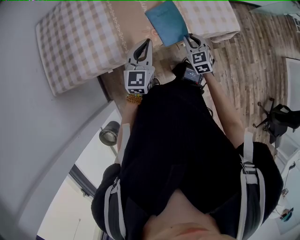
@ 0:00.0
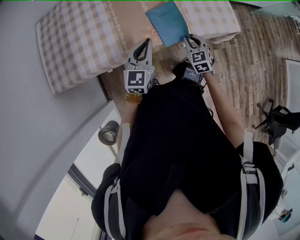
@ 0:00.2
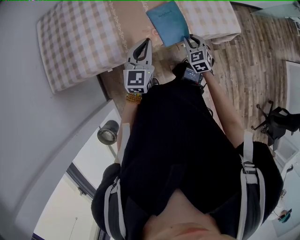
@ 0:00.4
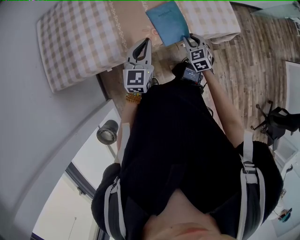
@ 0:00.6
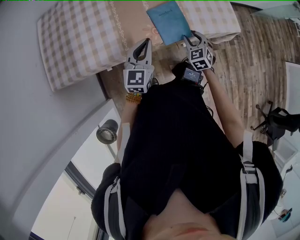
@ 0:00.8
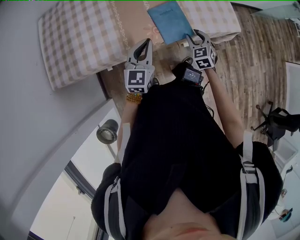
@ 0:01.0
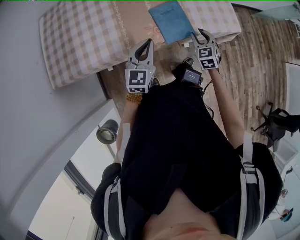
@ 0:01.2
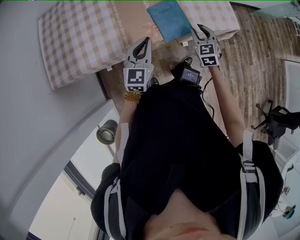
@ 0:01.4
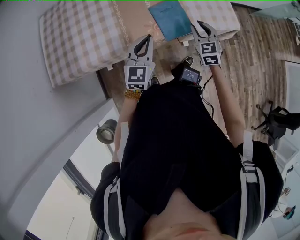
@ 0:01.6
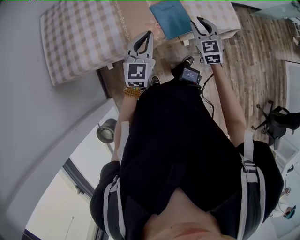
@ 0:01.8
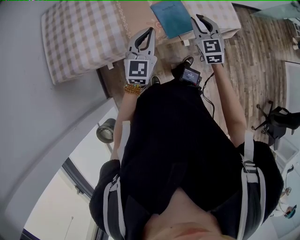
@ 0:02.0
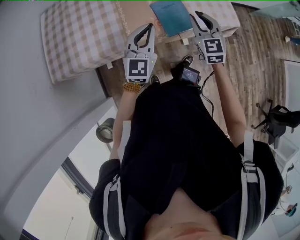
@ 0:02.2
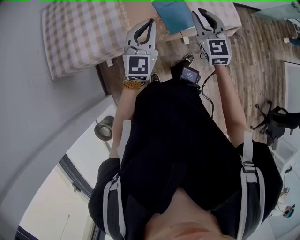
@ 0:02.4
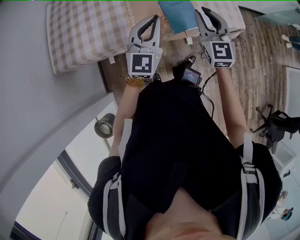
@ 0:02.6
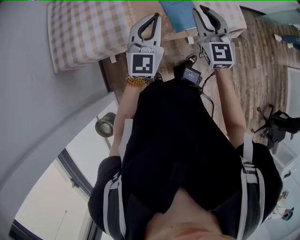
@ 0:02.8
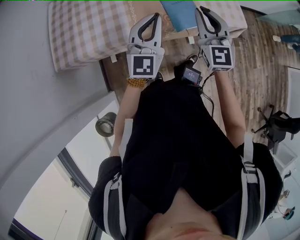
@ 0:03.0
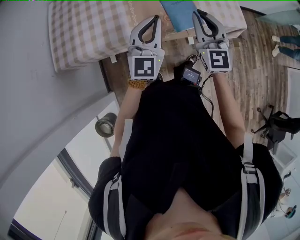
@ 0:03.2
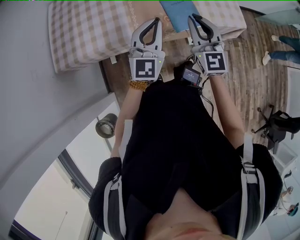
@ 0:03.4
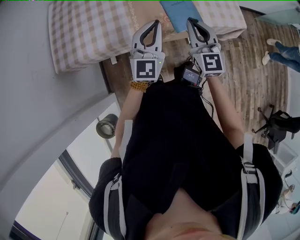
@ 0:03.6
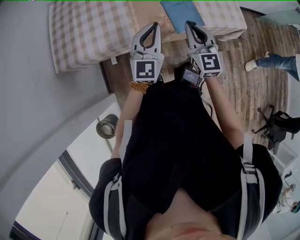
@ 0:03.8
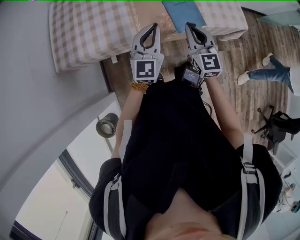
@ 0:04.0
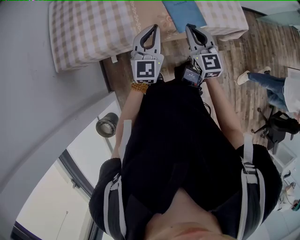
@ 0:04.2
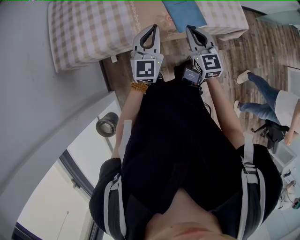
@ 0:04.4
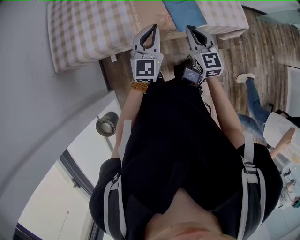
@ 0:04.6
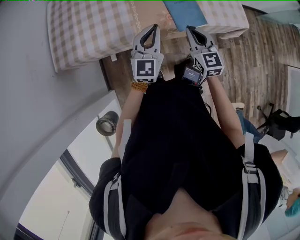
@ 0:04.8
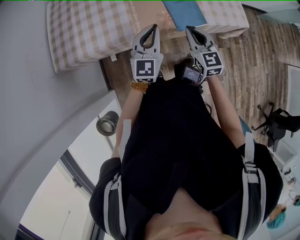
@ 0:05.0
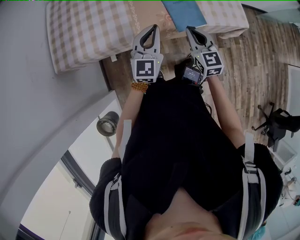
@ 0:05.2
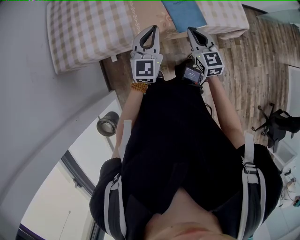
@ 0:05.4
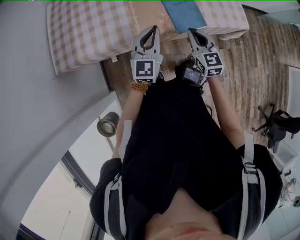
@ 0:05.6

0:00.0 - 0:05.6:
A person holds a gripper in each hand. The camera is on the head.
0:00.0 - 0:01.4: The grippers move only a little.
0:01.4 - 0:02.8: The right gripper is displaced upward and to the left by approximately 20 cm, and rotates about 30 degrees. Meanwhile the left gripper goes approximately 10 cm upward.
0:02.8 - 0:04.2: The two grippers go approximately 10 cm downward.
0:04.2 - 0:05.6: The right gripper shifts about 5 cm downward.

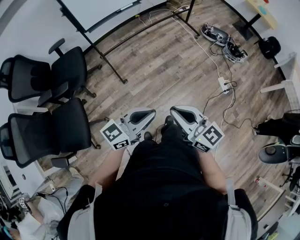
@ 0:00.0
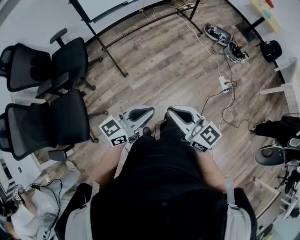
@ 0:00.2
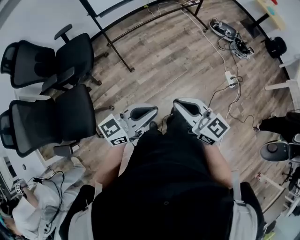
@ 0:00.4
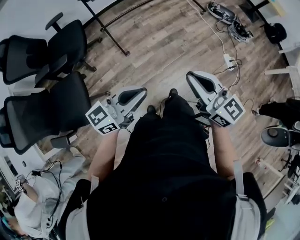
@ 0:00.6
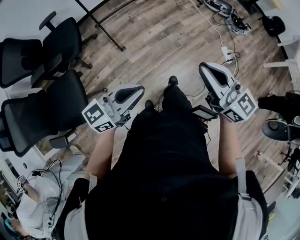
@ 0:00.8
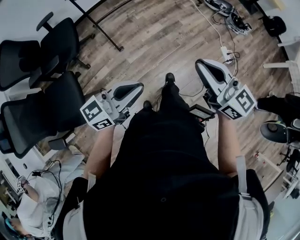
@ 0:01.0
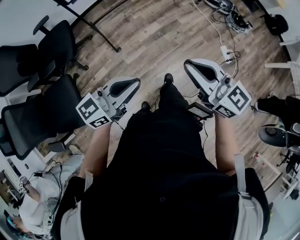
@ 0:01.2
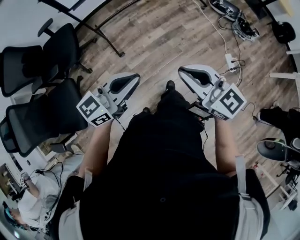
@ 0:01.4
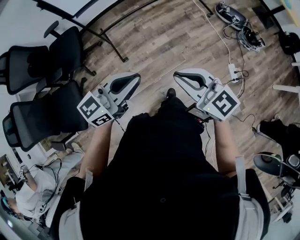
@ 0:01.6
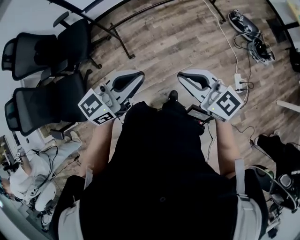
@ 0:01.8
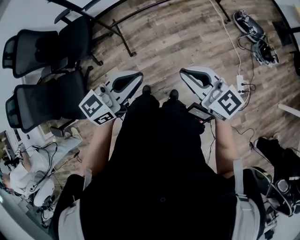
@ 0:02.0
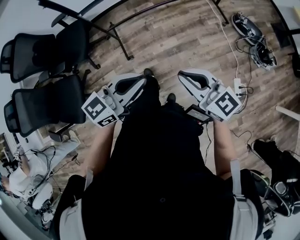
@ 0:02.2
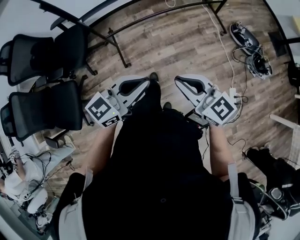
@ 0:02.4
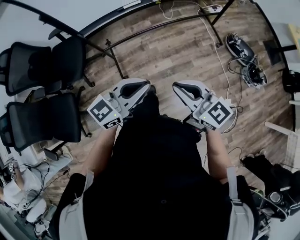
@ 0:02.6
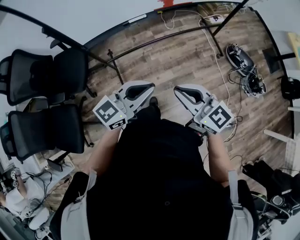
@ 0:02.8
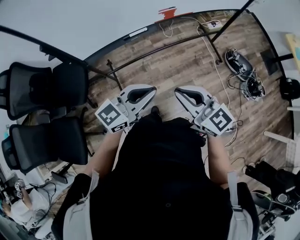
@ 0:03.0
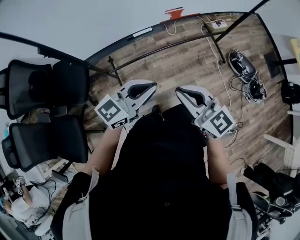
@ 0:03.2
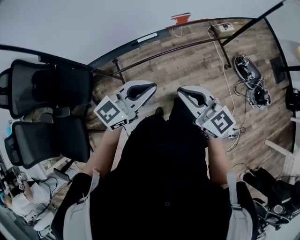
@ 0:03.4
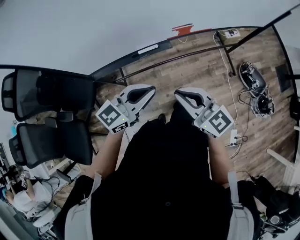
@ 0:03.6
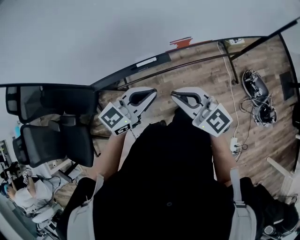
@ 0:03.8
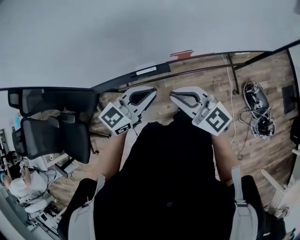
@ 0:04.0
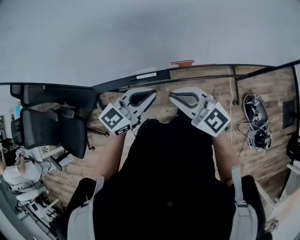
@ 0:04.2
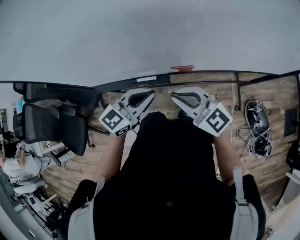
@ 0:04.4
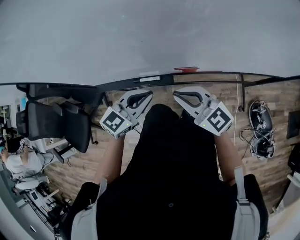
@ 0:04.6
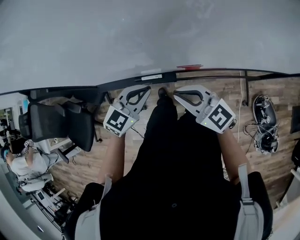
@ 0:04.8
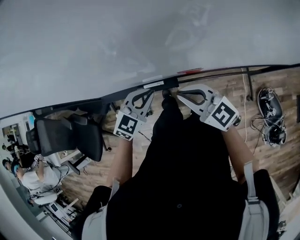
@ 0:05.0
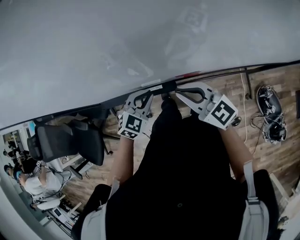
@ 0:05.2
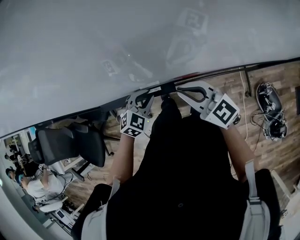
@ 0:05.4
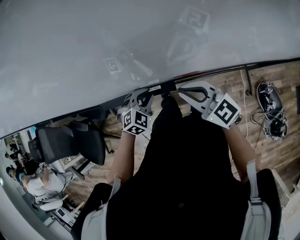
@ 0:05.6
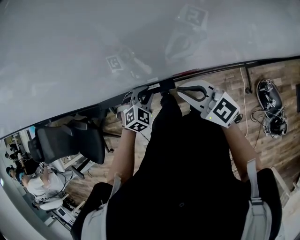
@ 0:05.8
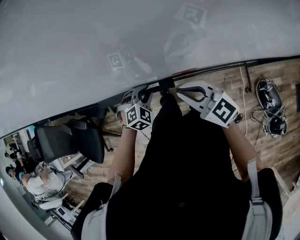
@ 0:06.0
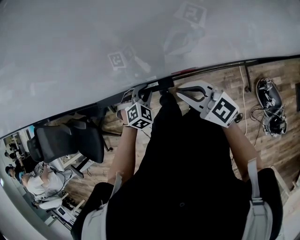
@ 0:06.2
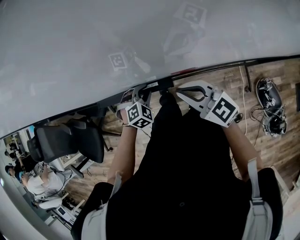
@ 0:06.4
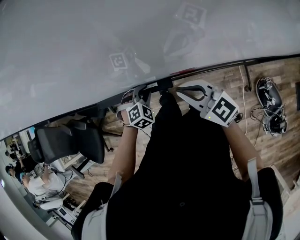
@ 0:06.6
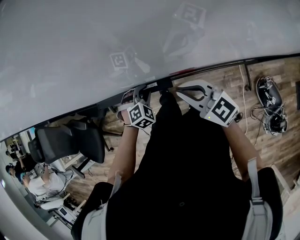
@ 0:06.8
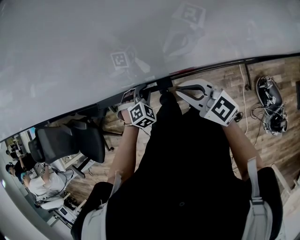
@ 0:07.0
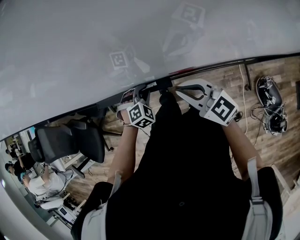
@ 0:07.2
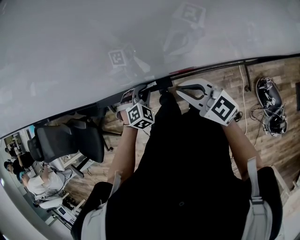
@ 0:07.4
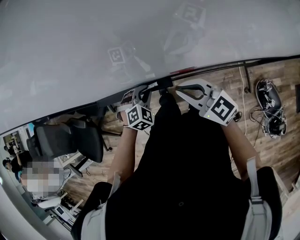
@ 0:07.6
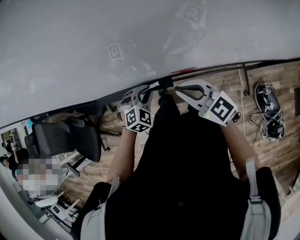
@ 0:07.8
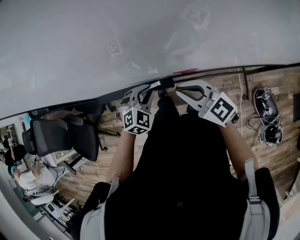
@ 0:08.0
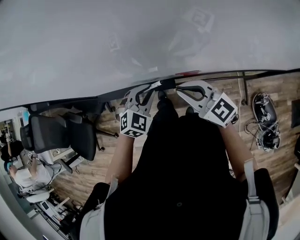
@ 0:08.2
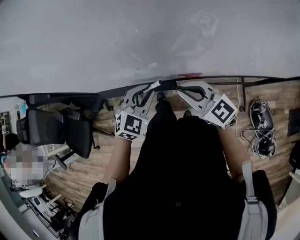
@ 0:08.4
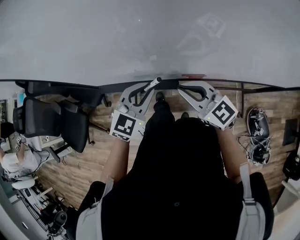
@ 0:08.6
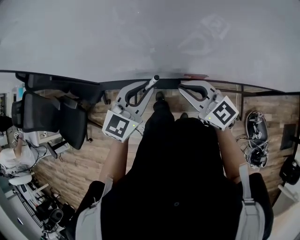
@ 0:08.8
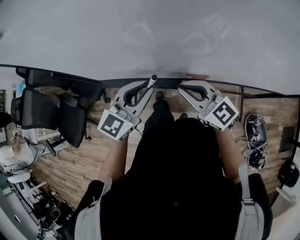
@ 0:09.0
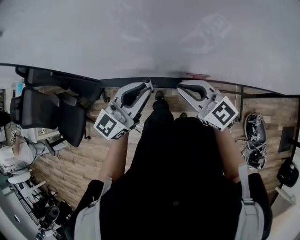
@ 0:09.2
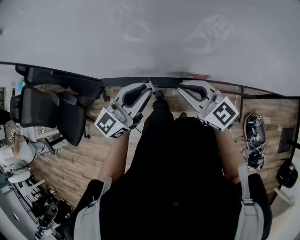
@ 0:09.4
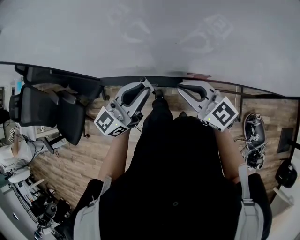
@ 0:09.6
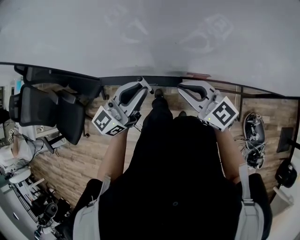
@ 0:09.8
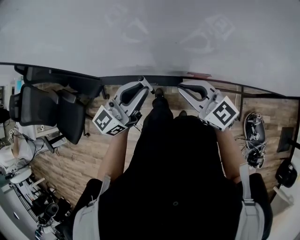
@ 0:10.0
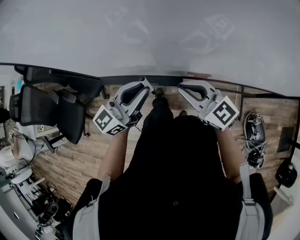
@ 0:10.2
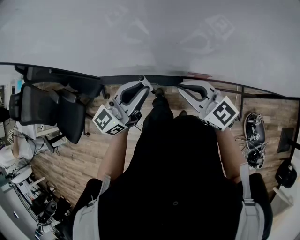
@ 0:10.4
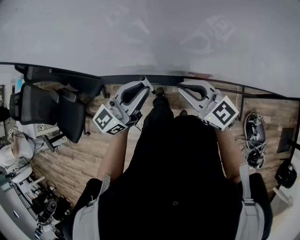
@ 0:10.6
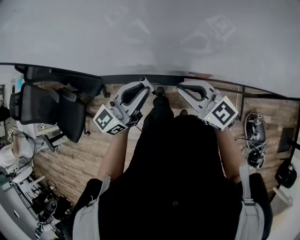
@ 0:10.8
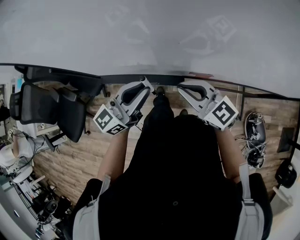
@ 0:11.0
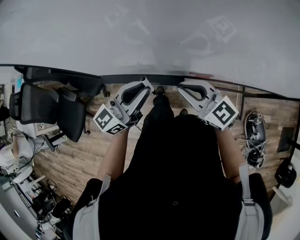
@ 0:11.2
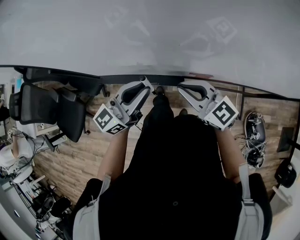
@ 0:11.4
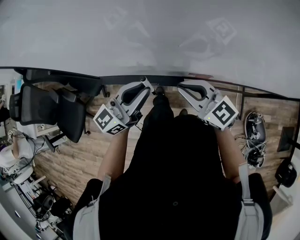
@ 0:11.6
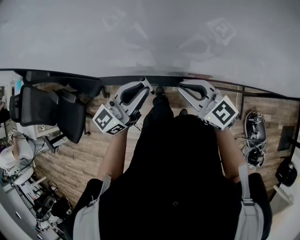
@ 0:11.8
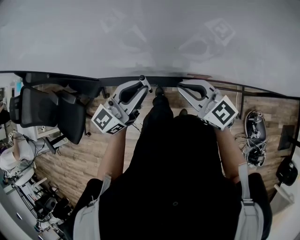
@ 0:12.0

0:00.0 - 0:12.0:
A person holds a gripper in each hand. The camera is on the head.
0:00.0 - 0:01.6: Both grippers travel together forward, approximately 20 cm.
0:01.6 - 0:03.0: The two grippers go approximately 30 cm forward.
0:03.0 - 0:04.4: The left gripper changes place by some 30 cm, and turns by about 30 degrees; the right gripper moves approximately 30 cm, and swivels approximately 30 degrees.
0:04.4 - 0:06.0: The left gripper moves downward and forward, roughly 20 cm, tilts its fingers roughly 40 degrees downward, and opens. Meanwhile the right gripper travels forward by some 5 cm.
0:06.0 - 0:07.6: The grippers move only a little.
0:07.6 - 0:09.0: The left gripper heads upward, covering about 25 cm, and tilts its fingers about 50 degrees upward. Meanwhile the right gripper shifts some 5 cm upward.
0:09.0 - 0:10.4: The left gripper turns by roughly 20 degrees.
0:10.4 - 0:12.0: There are only small adjustments of the grippers.

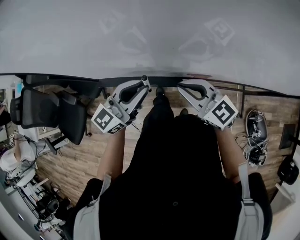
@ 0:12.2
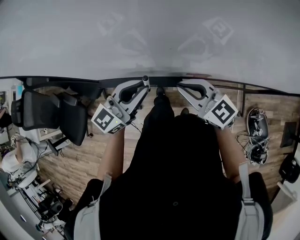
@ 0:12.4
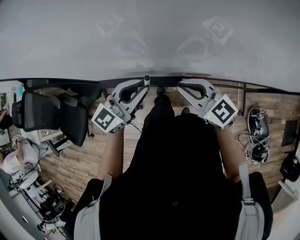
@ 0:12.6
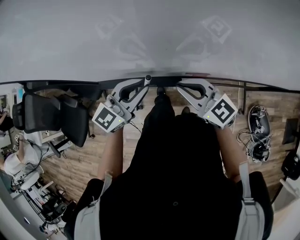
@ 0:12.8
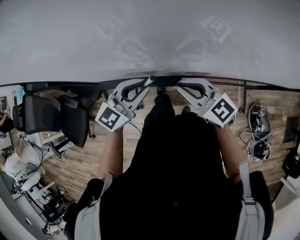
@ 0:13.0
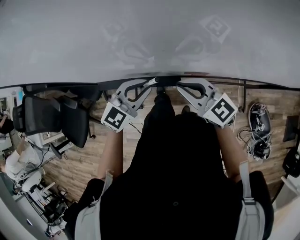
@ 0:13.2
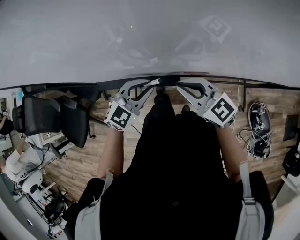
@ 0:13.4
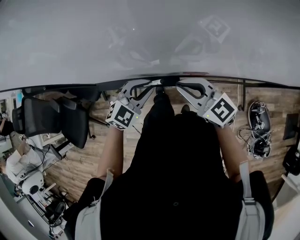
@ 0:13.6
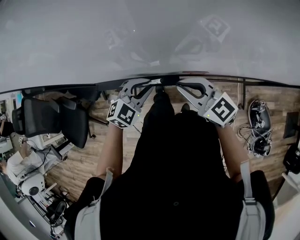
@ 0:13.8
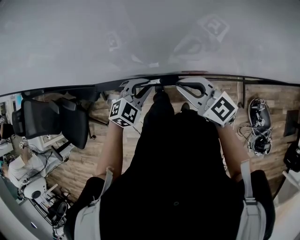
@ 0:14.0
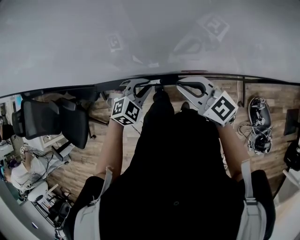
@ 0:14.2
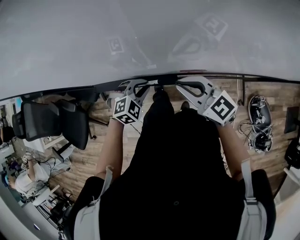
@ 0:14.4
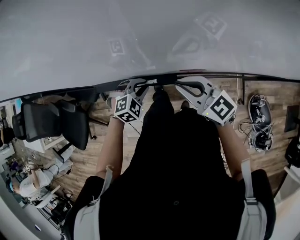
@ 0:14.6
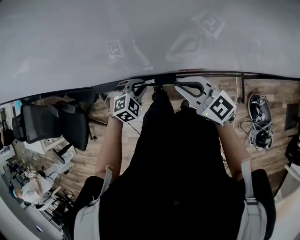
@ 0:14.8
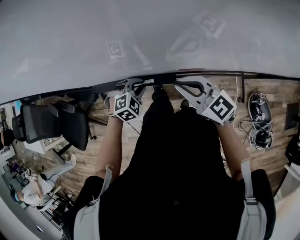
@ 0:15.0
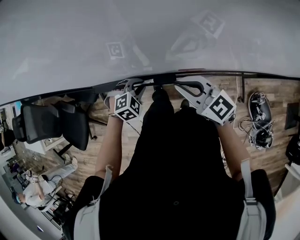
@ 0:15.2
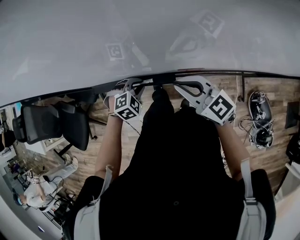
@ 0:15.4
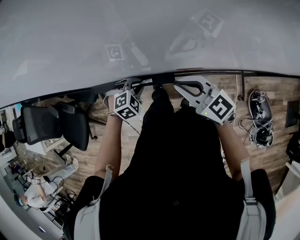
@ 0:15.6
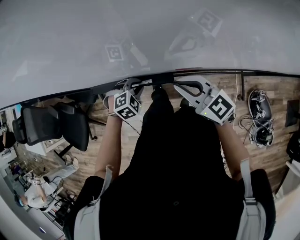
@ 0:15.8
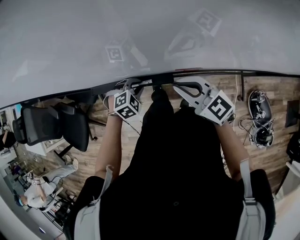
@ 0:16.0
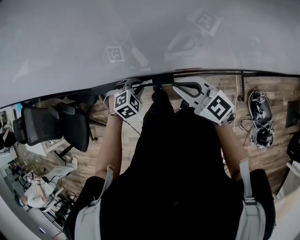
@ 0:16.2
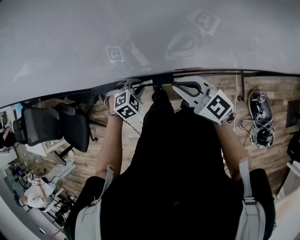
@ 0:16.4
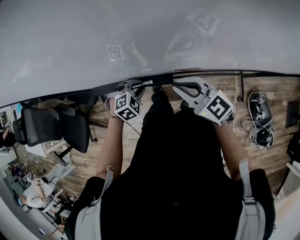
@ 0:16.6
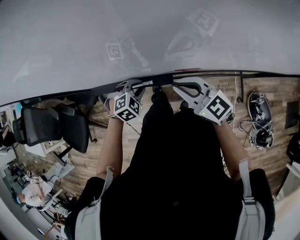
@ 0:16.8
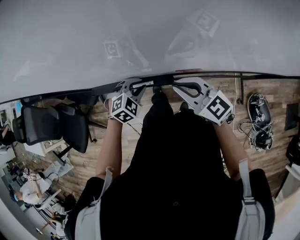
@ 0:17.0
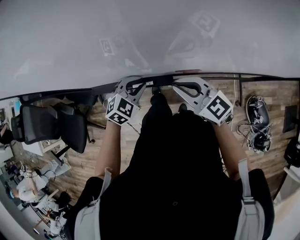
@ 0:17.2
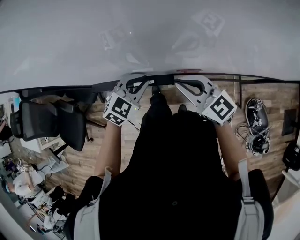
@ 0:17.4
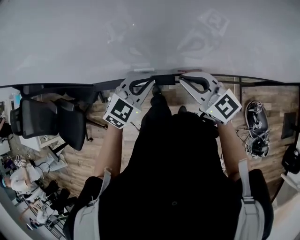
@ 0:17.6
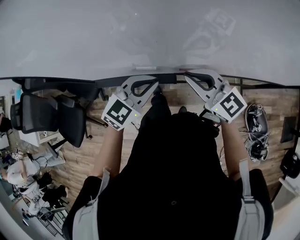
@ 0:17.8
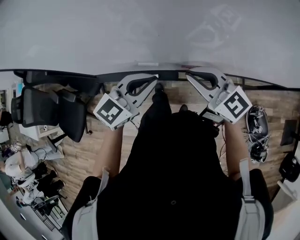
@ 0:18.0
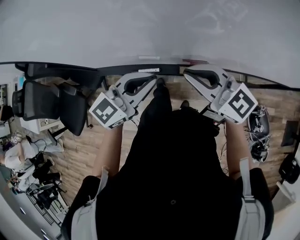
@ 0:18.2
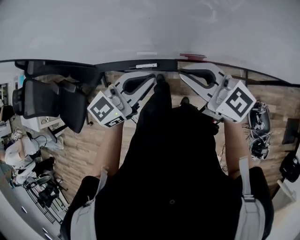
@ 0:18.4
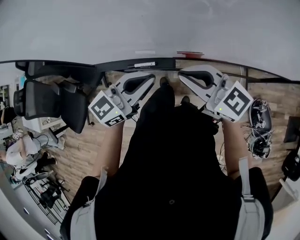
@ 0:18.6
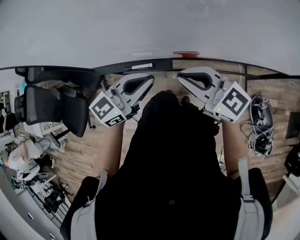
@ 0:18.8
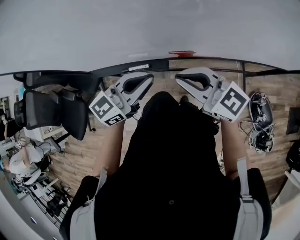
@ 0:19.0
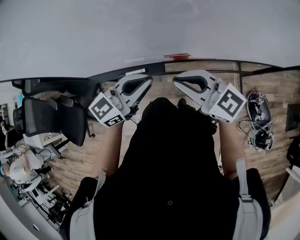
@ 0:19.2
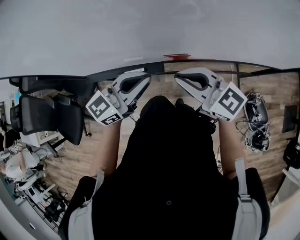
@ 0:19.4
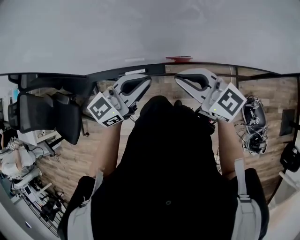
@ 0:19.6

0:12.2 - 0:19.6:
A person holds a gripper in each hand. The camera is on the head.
0:12.2 - 0:13.6: The left gripper travels downward by about 10 cm, and angles its fingers downward, by about 30 degrees.
0:13.6 - 0:15.2: The left gripper shifts approximately 10 cm downward, and turns by roughly 30 degrees.
0:15.2 - 0:16.6: The grippers stay close to where they were, moving slightly.
0:16.6 - 0:18.2: The right gripper travels upward by about 10 cm. The left gripper goes roughly 25 cm upward, and tilts its fingers some 50 degrees upward.
0:18.2 - 0:19.6: There are only small adjustments of the grippers.
